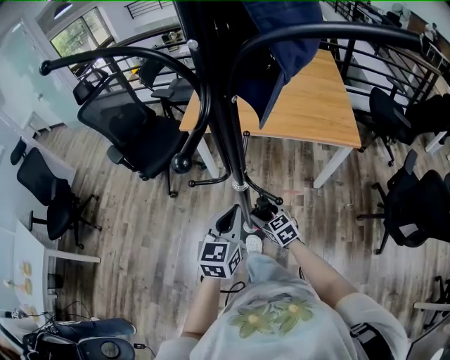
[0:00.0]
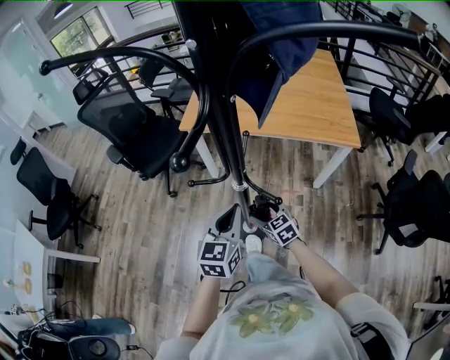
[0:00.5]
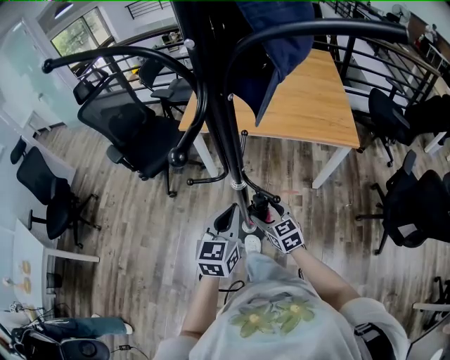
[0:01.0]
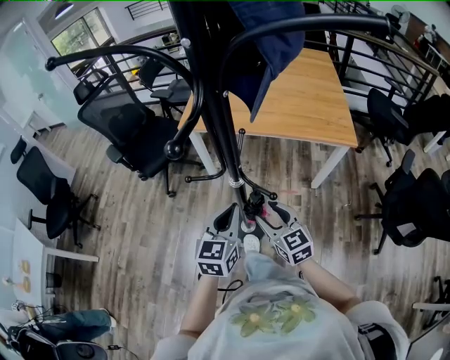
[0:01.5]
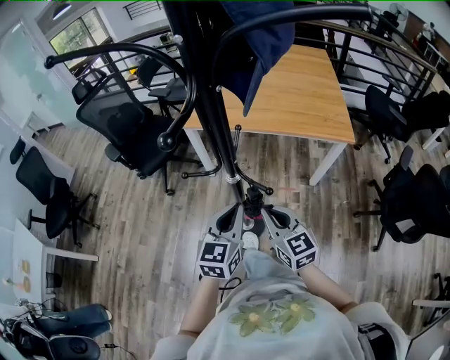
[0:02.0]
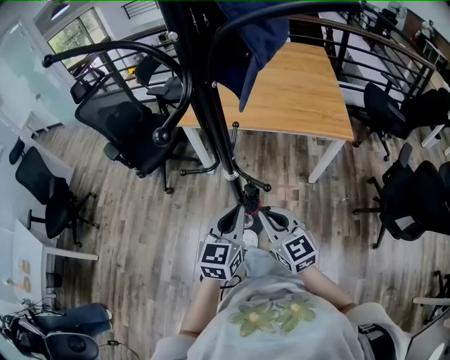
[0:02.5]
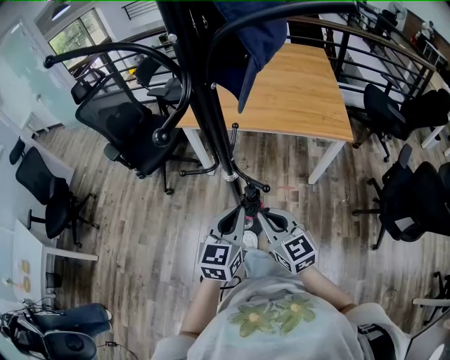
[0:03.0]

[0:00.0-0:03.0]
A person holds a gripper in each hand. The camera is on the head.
0:00.0 to 0:01.5: The right gripper shifts roughly 15 cm upward and backward.
0:01.5 to 0:03.0: The right gripper shifts about 5 cm upward, and closes.

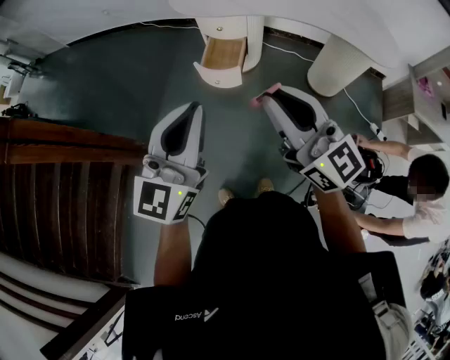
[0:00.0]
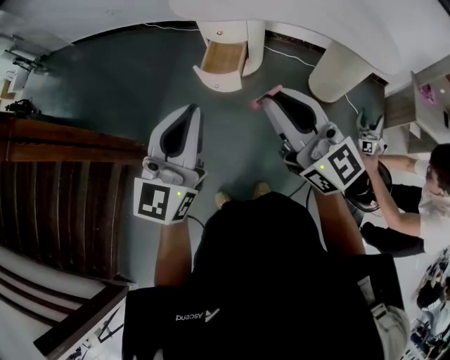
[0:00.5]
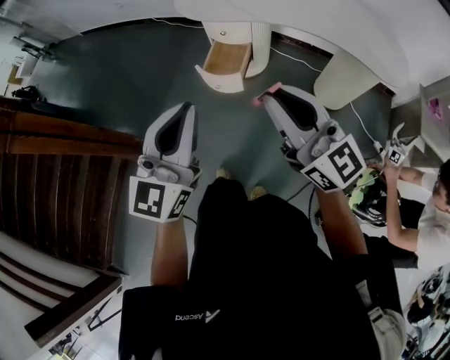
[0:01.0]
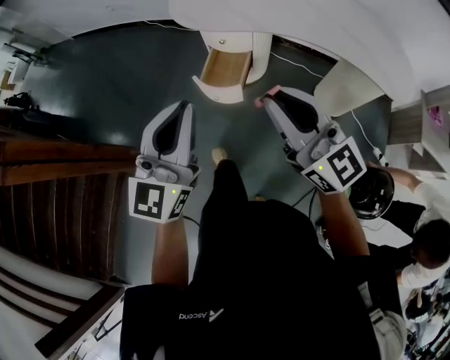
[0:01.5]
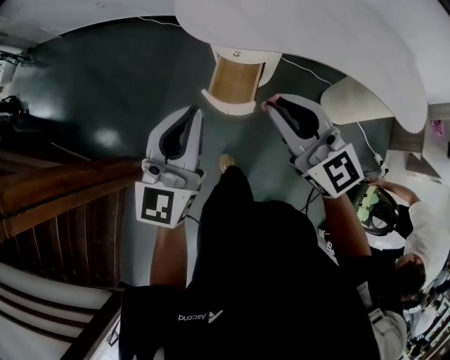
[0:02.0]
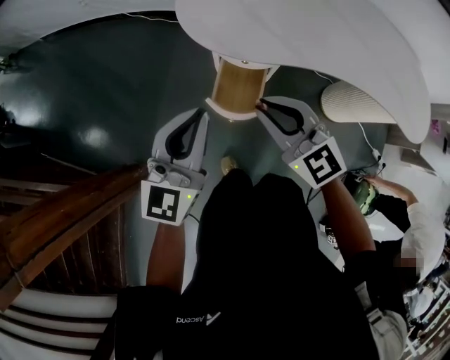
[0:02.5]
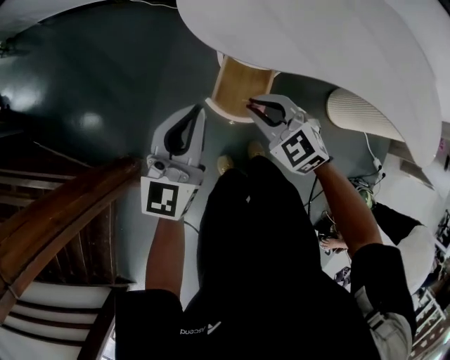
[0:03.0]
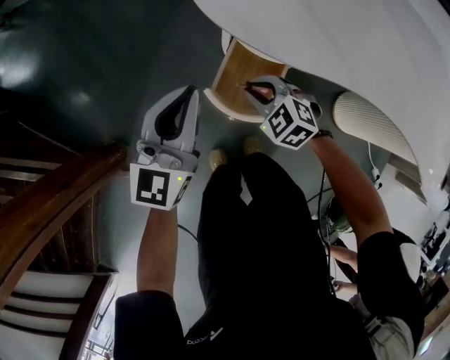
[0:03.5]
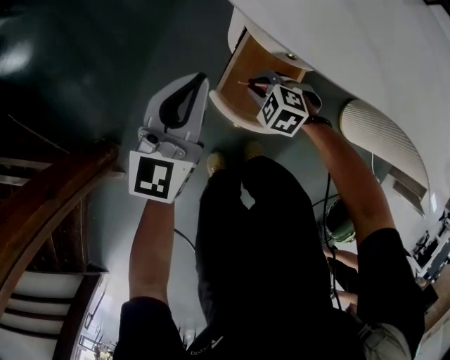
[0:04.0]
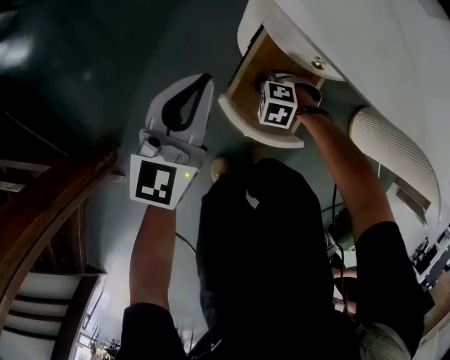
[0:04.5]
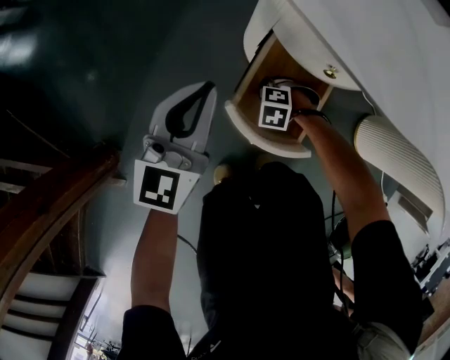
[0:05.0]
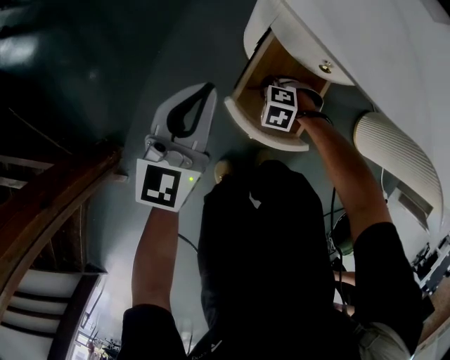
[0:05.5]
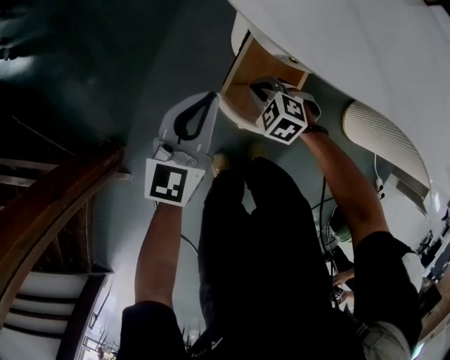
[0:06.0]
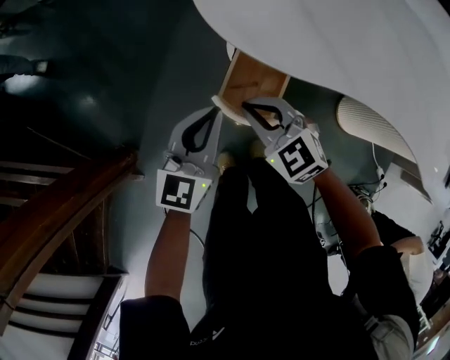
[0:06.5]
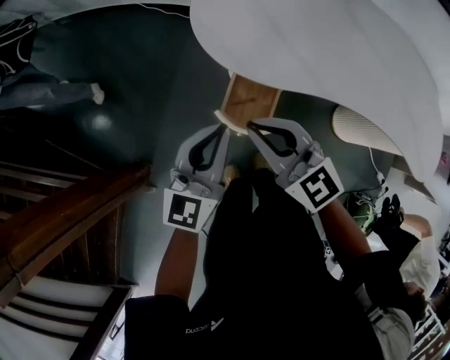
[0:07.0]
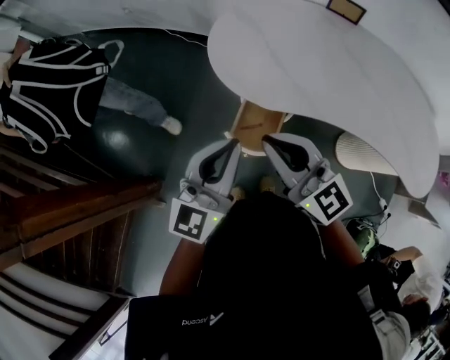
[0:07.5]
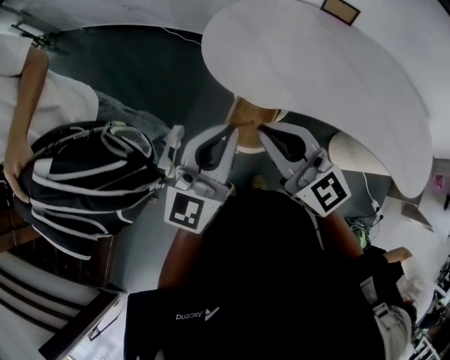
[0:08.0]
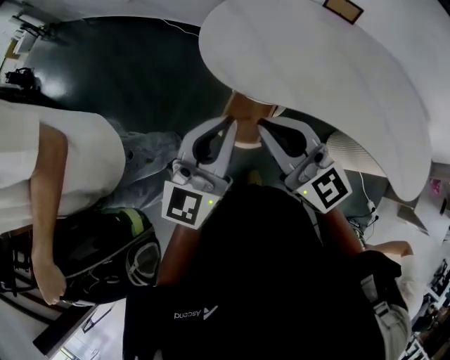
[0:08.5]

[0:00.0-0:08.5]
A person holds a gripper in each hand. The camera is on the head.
0:00.0 to 0:02.0: The two grippers go about 30 cm forward.
0:02.0 to 0:04.0: The two grippers go some 50 cm downward and forward. The right gripper tips its fingers downward by approximately 70 degrees.
0:04.0 to 0:06.5: The left gripper shifts by some 10 cm. The right gripper goes some 25 cm upward, and angles its fingers upward, by roughly 30 degrees.
0:06.5 to 0:08.5: The two grippers go about 30 cm upward. The right gripper tips its fingers upward by approximately 40 degrees.

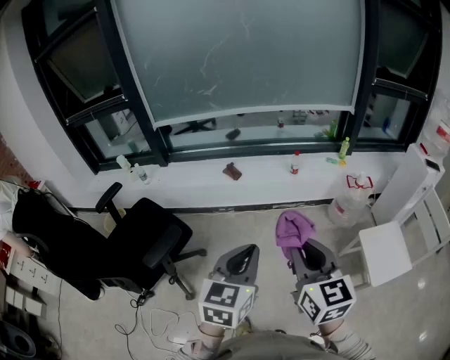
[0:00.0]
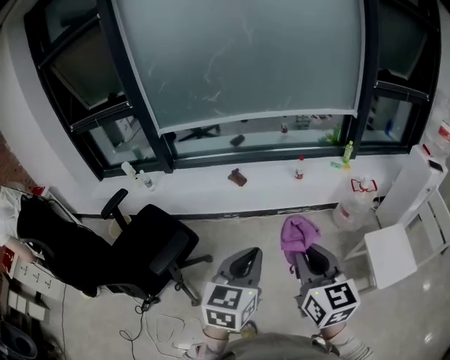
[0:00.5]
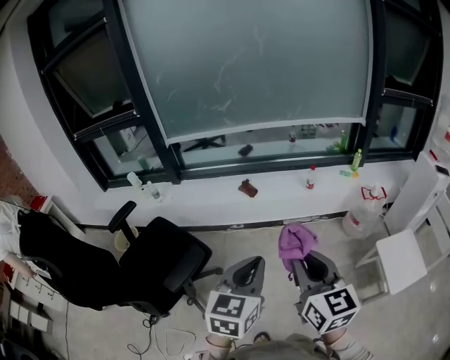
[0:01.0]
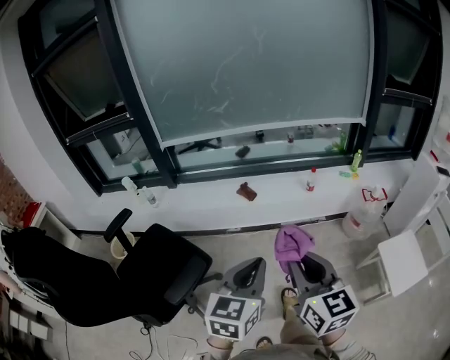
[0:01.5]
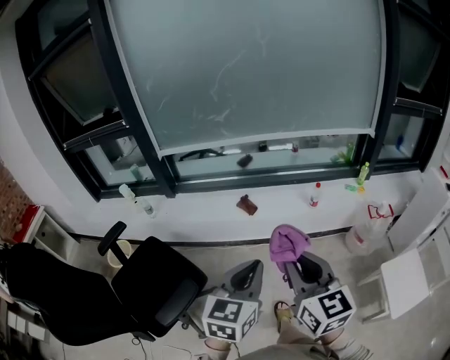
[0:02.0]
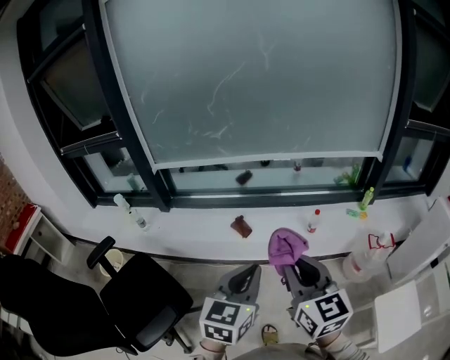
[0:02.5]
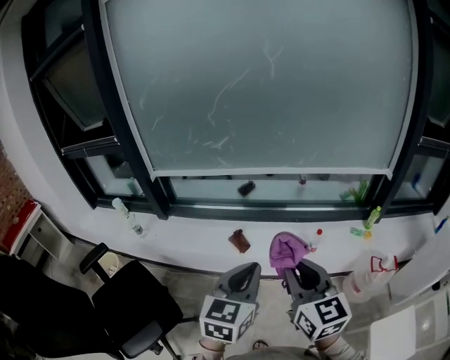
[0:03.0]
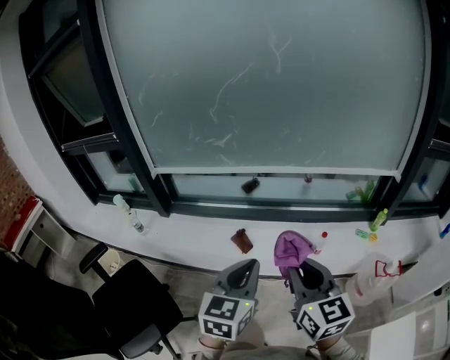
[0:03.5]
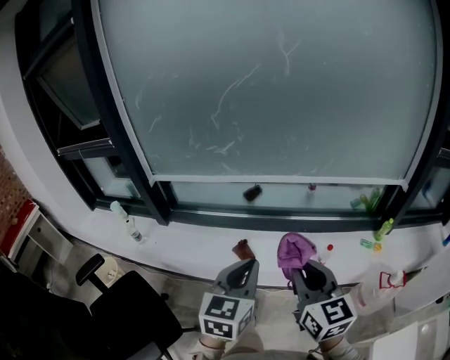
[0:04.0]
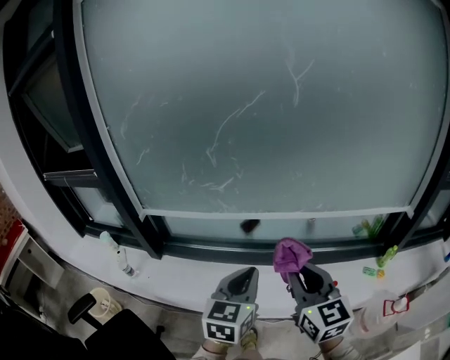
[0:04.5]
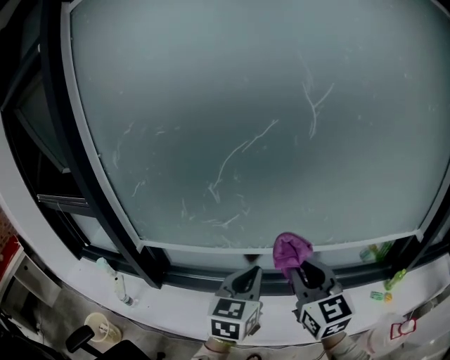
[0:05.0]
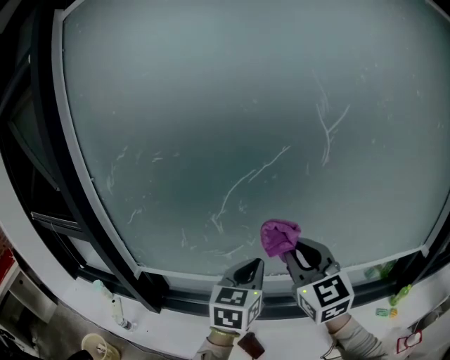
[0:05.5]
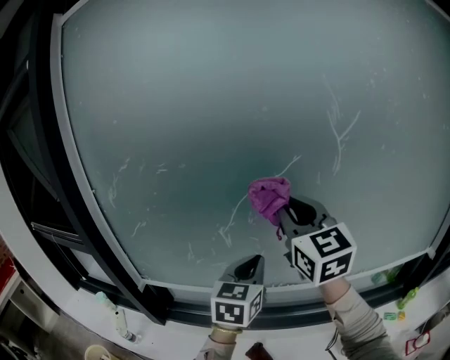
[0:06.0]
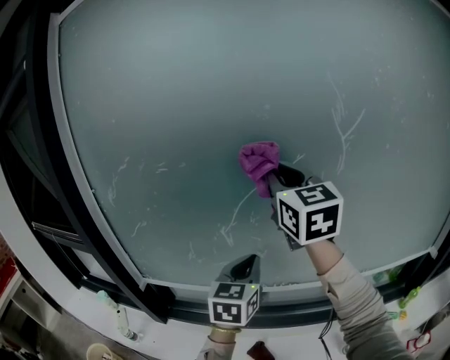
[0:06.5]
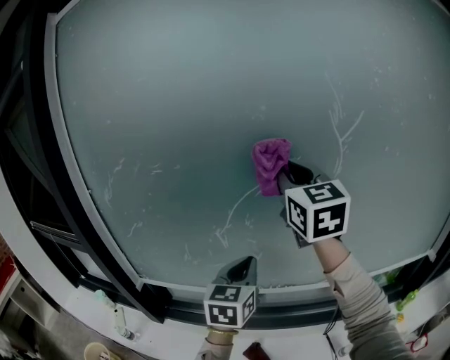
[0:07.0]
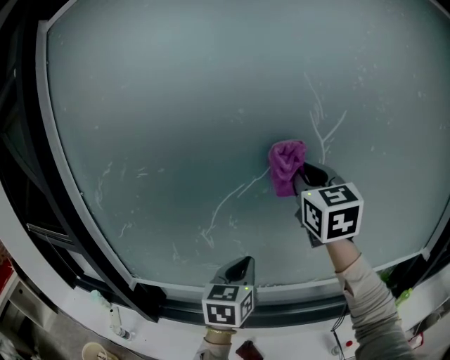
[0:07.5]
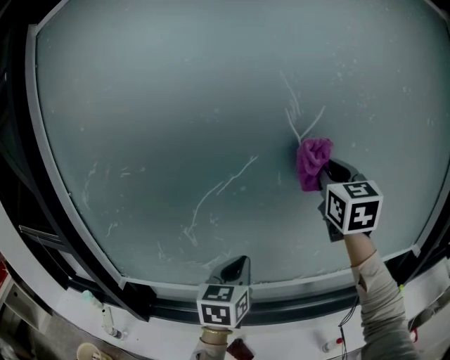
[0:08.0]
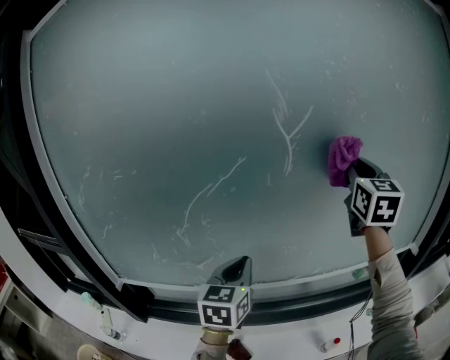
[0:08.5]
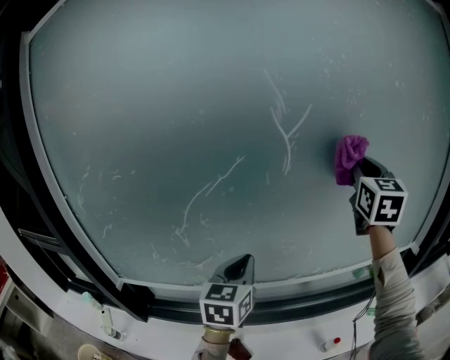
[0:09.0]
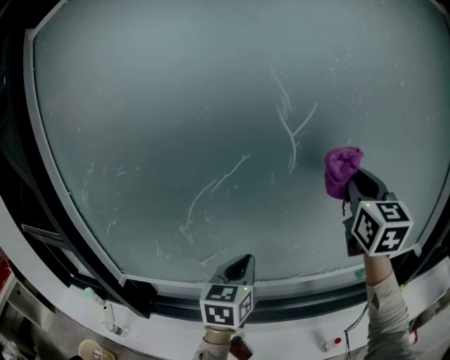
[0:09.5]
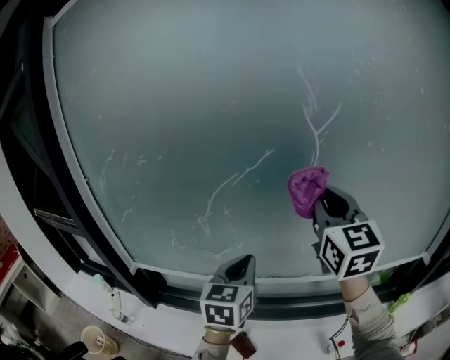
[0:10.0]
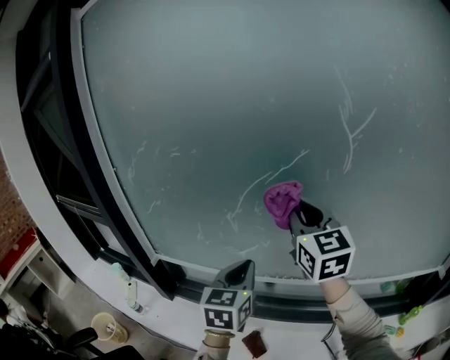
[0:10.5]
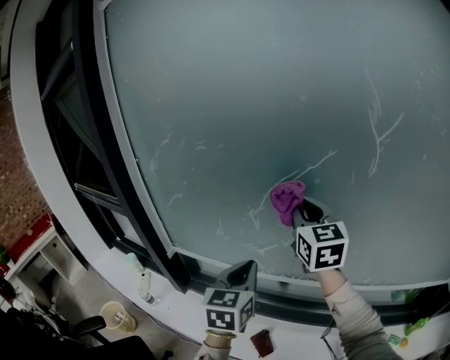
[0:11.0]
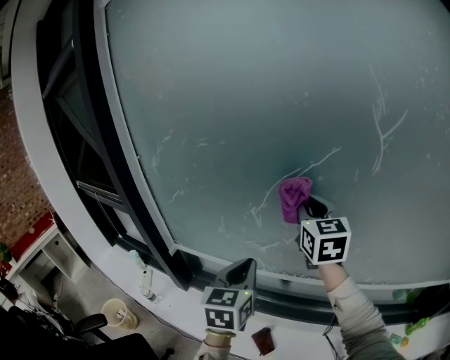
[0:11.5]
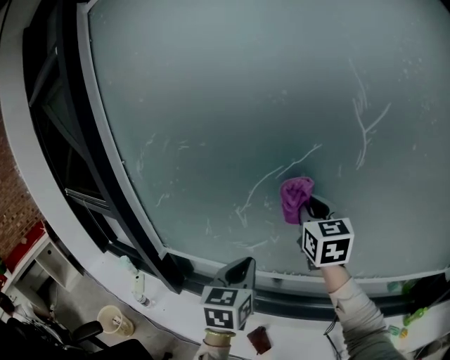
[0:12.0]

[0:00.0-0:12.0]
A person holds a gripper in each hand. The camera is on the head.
0:00.0 to 0:02.0: The two grippers go roughly 20 cm forward and to the left.
0:02.0 to 0:04.0: The grippers both shift forward by about 35 cm.
0:04.0 to 0:06.0: The pair of grippers is taken forward, about 50 cm. The right gripper heads upward, covering roughly 25 cm, and swivels some 30 degrees.
0:06.0 to 0:08.0: The left gripper heads to the right, covering roughly 5 cm; the right gripper goes some 20 cm to the right.
0:08.0 to 0:10.0: The right gripper travels backward by some 5 cm, and moves approximately 15 cm to the right and comes back.
0:10.0 to 0:12.0: The left gripper heads to the left, covering approximately 10 cm, while the right gripper shifts approximately 15 cm to the left, forward and downward.

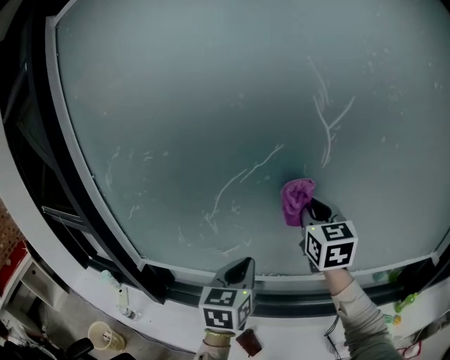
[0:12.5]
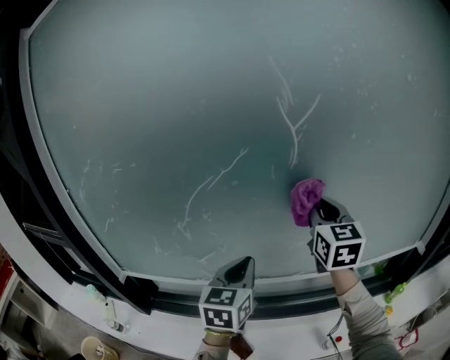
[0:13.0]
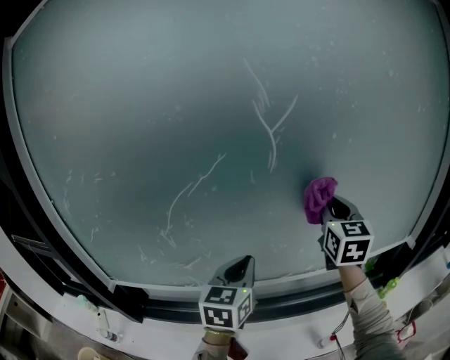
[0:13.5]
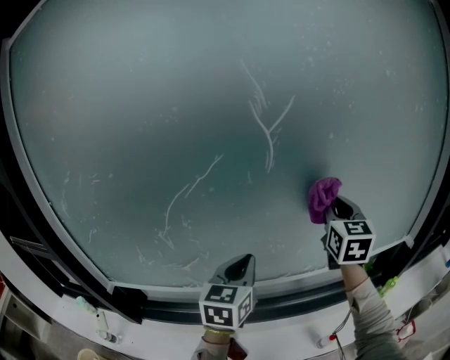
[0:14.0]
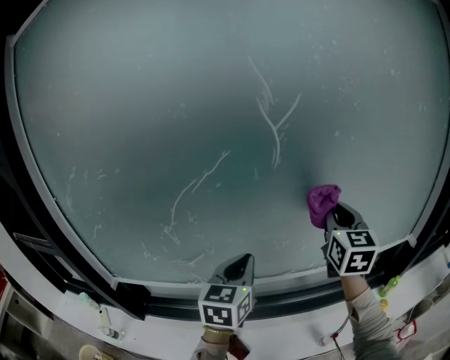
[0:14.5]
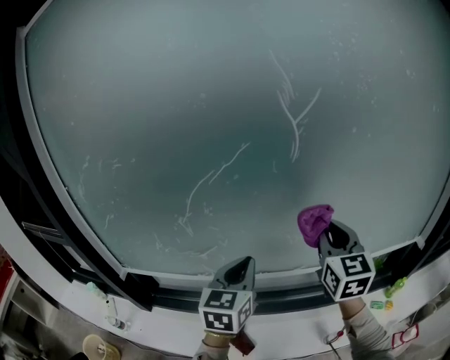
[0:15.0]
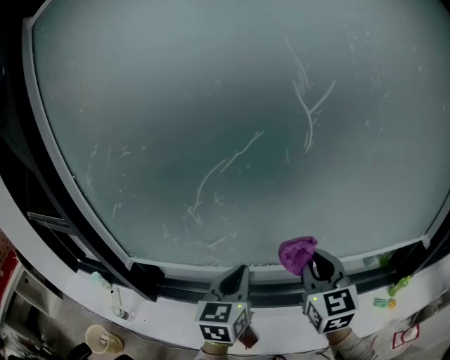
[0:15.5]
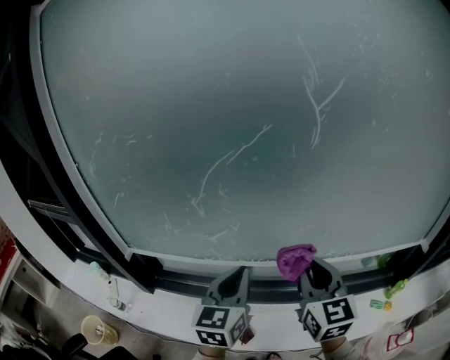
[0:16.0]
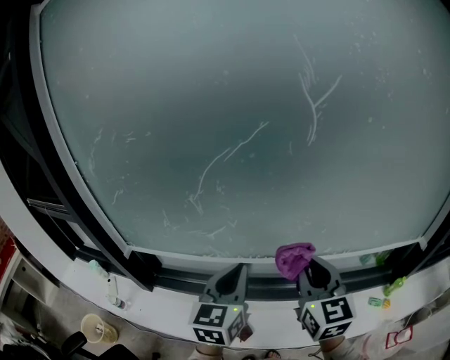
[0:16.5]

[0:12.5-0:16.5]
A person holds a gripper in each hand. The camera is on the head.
0:12.5 to 0:14.5: The left gripper moves to the right, some 10 cm. The right gripper goes some 20 cm to the right.
0:14.5 to 0:16.5: The right gripper shifts approximately 20 cm to the left, backward and downward. Meanwhile the left gripper is displaced backward and to the left by roughly 10 cm.
